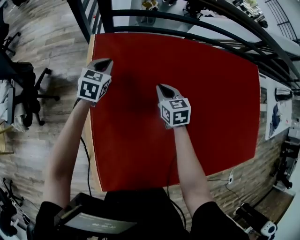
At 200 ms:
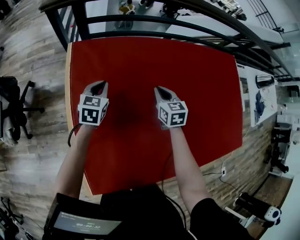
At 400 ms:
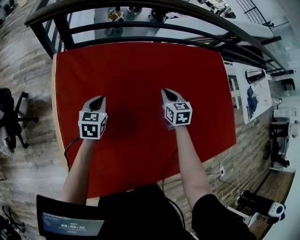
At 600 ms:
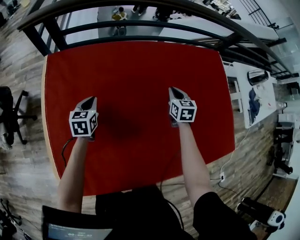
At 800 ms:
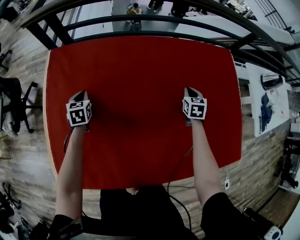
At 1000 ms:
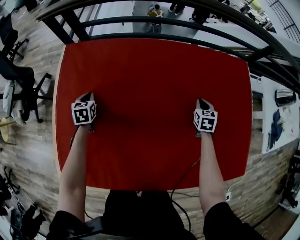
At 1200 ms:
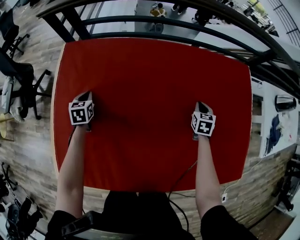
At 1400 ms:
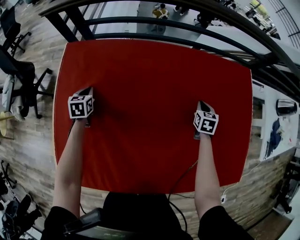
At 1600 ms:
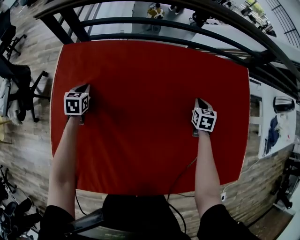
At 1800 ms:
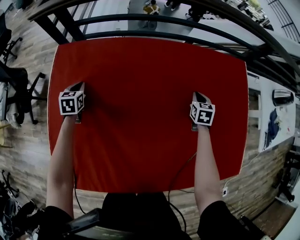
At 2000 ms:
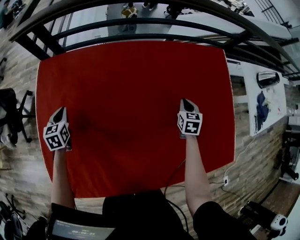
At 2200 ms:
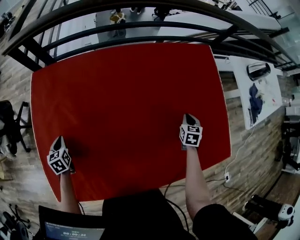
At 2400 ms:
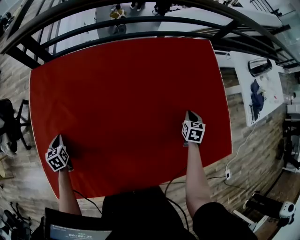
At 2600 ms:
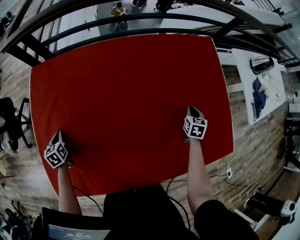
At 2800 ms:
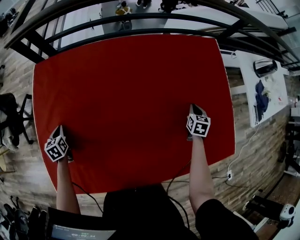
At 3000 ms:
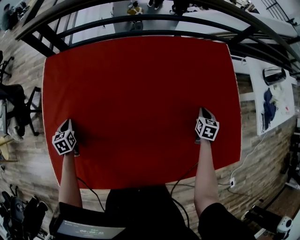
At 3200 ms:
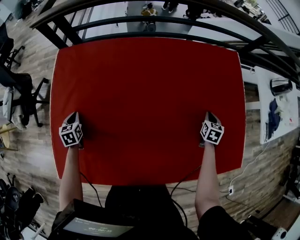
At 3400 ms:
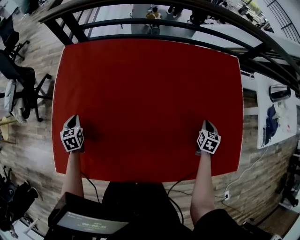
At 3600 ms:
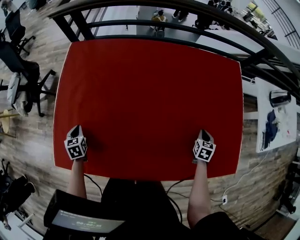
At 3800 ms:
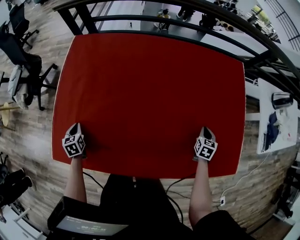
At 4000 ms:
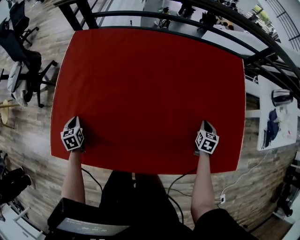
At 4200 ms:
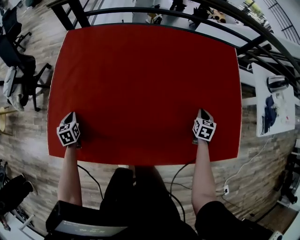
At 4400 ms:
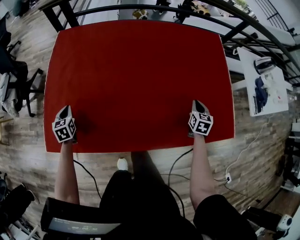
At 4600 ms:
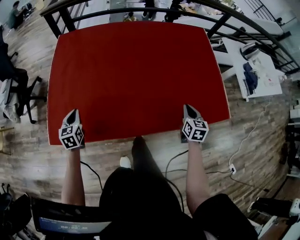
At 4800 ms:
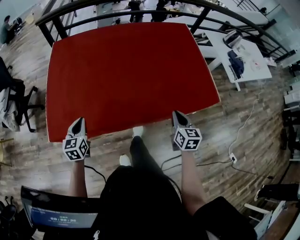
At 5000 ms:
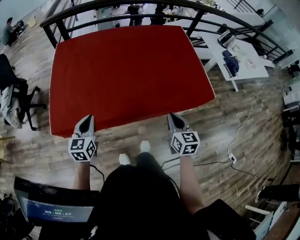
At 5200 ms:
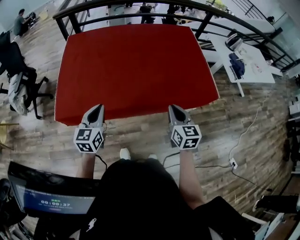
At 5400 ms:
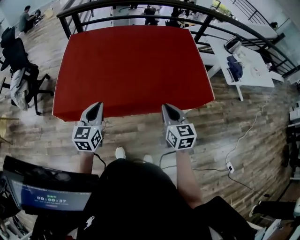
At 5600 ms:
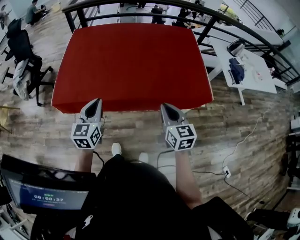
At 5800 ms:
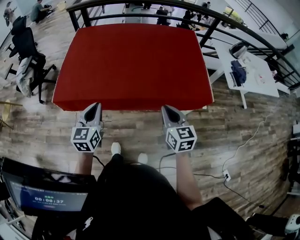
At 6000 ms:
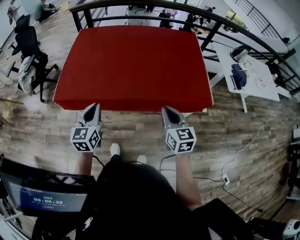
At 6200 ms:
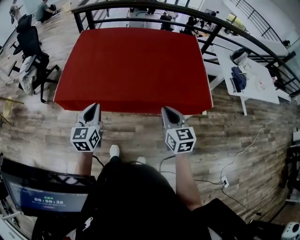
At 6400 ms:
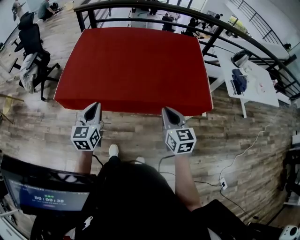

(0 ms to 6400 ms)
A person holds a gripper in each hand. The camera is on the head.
0 ms - 1600 ms: The right gripper shifts roughly 50 cm to the right, and changes its angle by some 20 degrees, while the left gripper moves to the right and downward, about 15 cm, and rotates approximately 20 degrees.
1600 ms - 3200 ms: The right gripper is displaced to the right and backward by roughly 20 cm. The left gripper shifts roughly 15 cm backward.
3200 ms - 4800 ms: The grippers both shift backward by about 40 cm. The left gripper turns by some 30 degrees, while the right gripper rotates about 20 degrees.
4800 ms - 6400 ms: The right gripper moves upward and backward, approximately 15 cm, and turns by about 30 degrees. The left gripper is displaced to the right, backward and upward by roughly 30 cm.

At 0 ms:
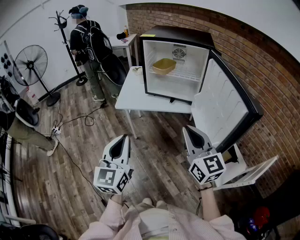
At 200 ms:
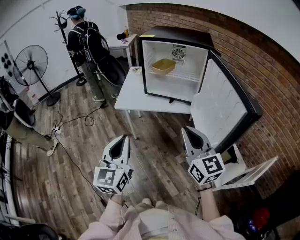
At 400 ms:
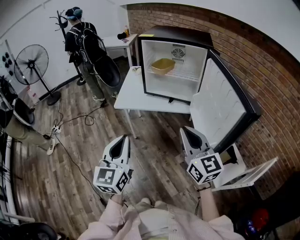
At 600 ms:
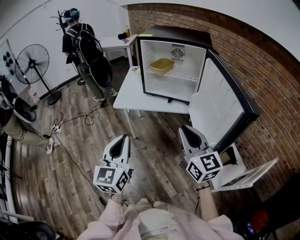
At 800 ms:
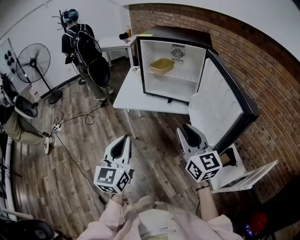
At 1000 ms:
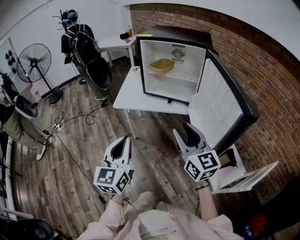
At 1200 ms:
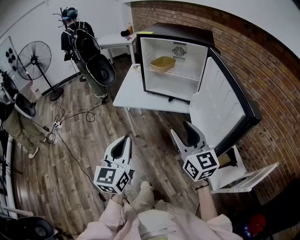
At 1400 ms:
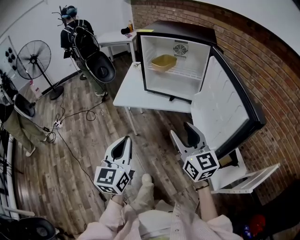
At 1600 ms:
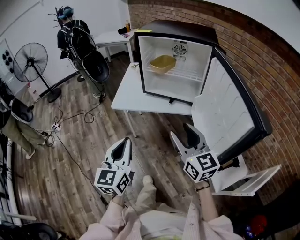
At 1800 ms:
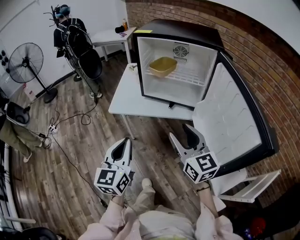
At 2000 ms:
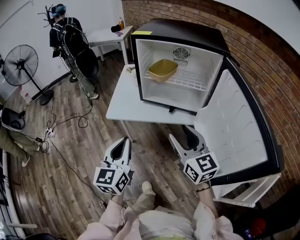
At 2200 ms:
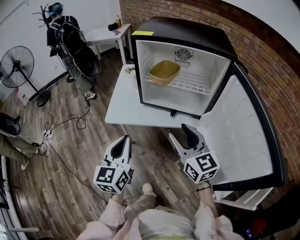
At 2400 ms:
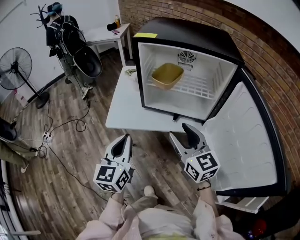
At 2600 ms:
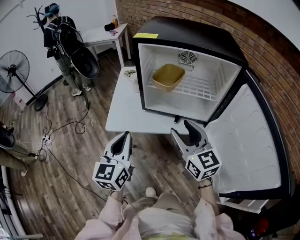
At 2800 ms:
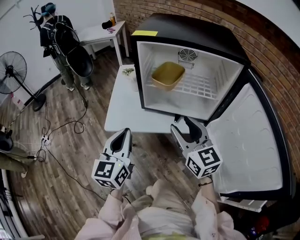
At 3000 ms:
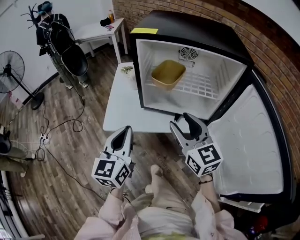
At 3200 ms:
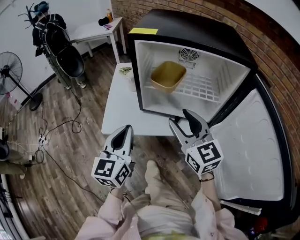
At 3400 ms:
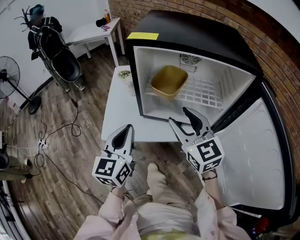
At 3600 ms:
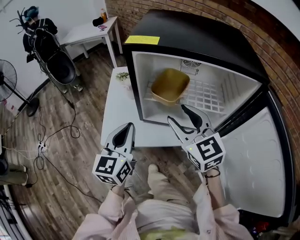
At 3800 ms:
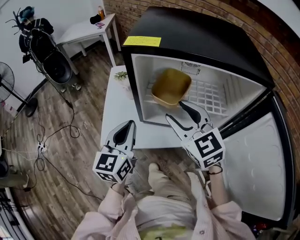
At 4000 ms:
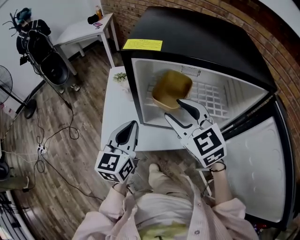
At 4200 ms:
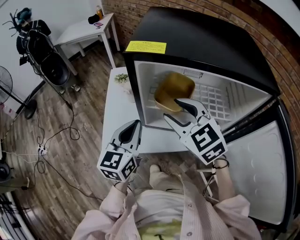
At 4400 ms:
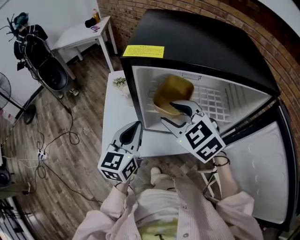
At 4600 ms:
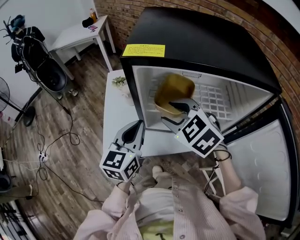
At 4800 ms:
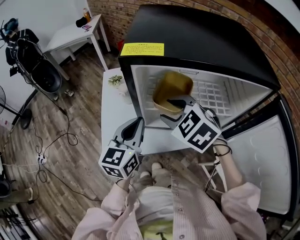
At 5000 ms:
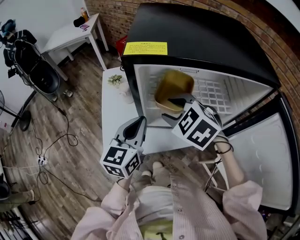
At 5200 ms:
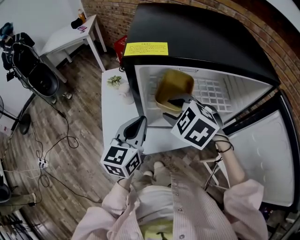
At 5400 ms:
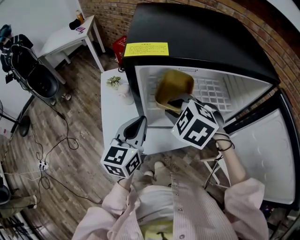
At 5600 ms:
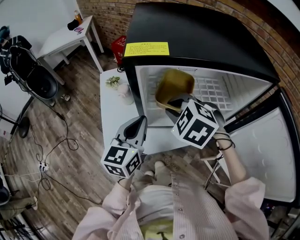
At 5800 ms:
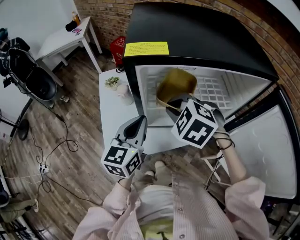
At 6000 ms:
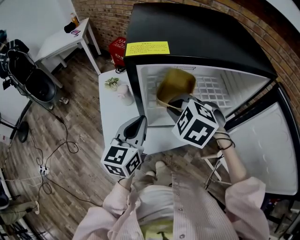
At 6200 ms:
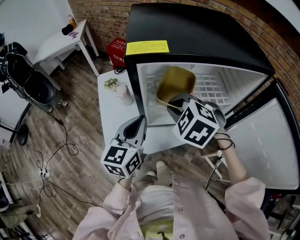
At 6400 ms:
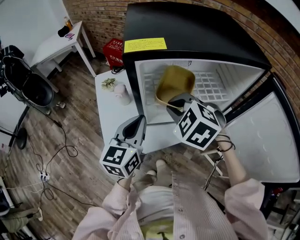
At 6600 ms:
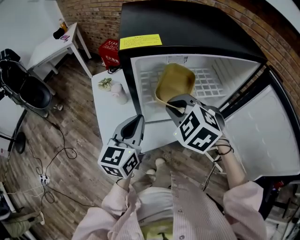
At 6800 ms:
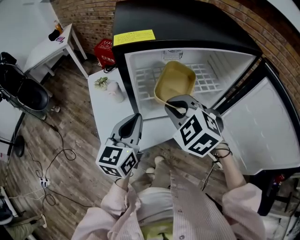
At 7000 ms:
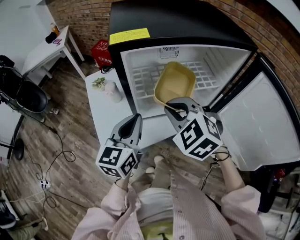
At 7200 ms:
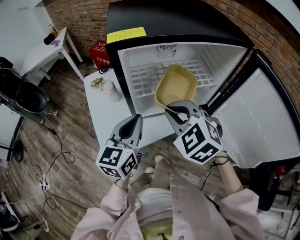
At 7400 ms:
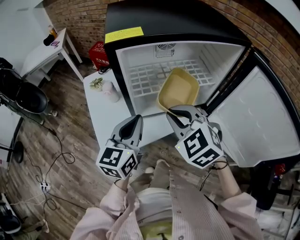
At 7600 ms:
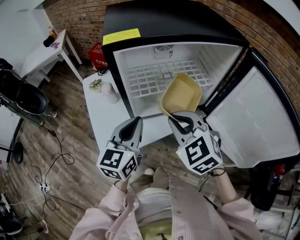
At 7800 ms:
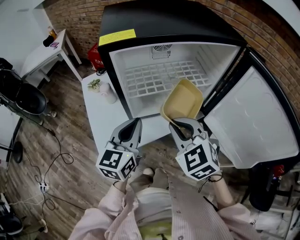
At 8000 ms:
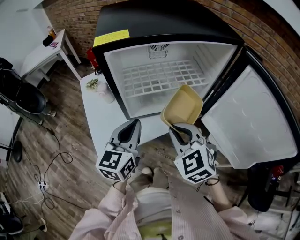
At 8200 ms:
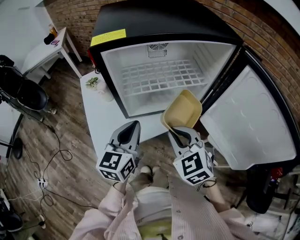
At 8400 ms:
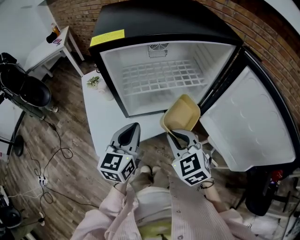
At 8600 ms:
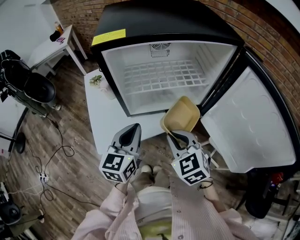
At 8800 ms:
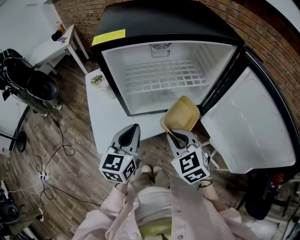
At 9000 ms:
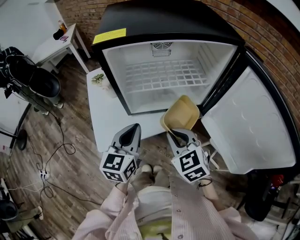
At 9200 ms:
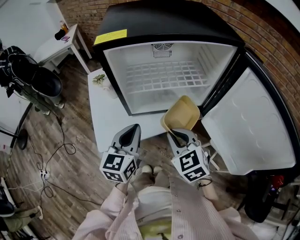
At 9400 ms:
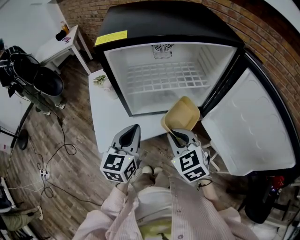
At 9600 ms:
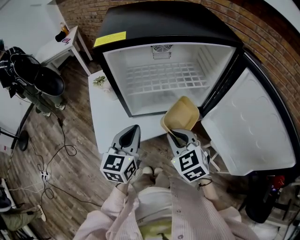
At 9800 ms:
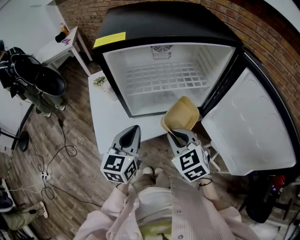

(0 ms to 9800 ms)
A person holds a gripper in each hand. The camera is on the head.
0 ms - 1400 ms: The right gripper shifts by roughly 5 cm, and opens up. The left gripper ends up roughly 5 cm from where it was.
1400 ms - 2800 ms: Both grippers travel together forward, about 25 cm.
2800 ms - 4200 ms: The two grippers go approximately 20 cm forward. The right gripper rotates roughly 30 degrees.
4200 ms - 5600 ms: The right gripper ends up approximately 5 cm from where it was, turns by some 30 degrees, and closes up.
5600 ms - 7000 ms: The right gripper is displaced backward by roughly 5 cm.
7000 ms - 8400 ms: The right gripper goes about 15 cm backward, to the right and downward, while the left gripper is displaced backward by about 5 cm.
8400 ms - 9800 ms: The grippers make only small movements.

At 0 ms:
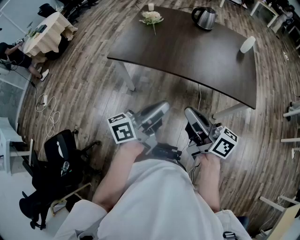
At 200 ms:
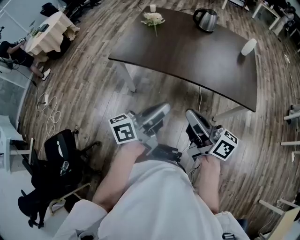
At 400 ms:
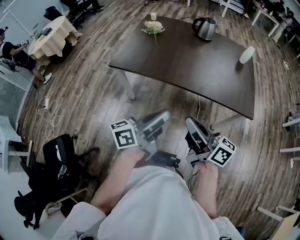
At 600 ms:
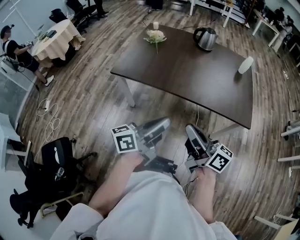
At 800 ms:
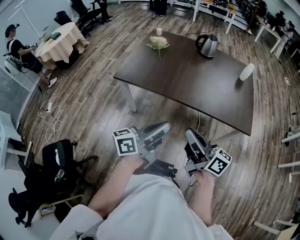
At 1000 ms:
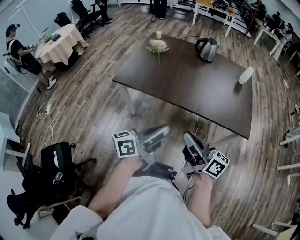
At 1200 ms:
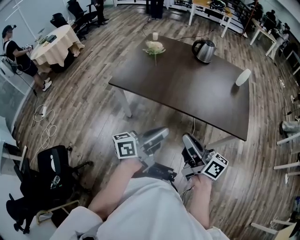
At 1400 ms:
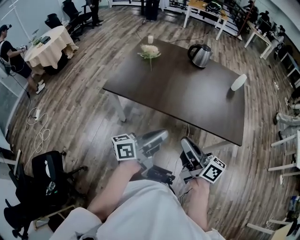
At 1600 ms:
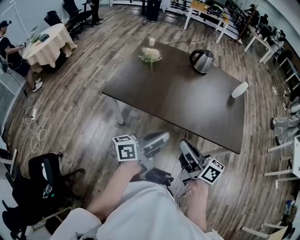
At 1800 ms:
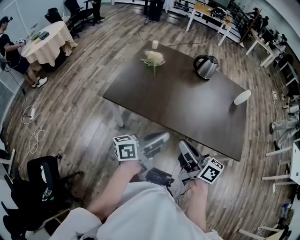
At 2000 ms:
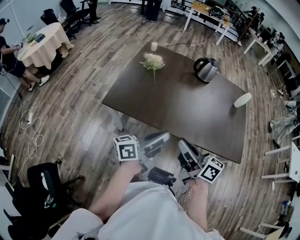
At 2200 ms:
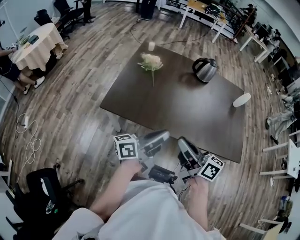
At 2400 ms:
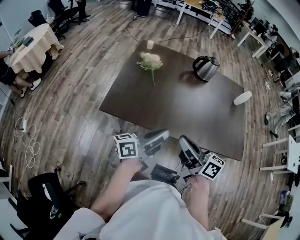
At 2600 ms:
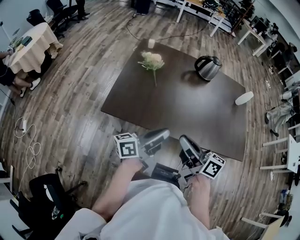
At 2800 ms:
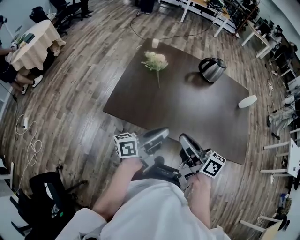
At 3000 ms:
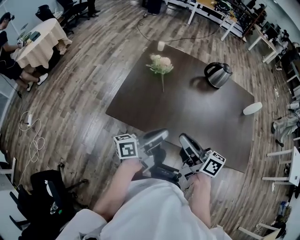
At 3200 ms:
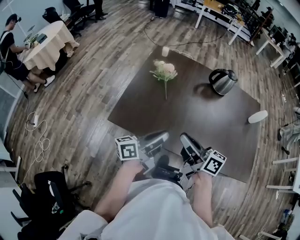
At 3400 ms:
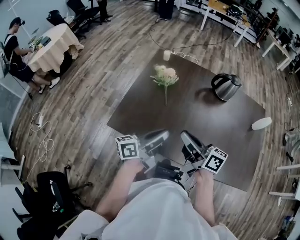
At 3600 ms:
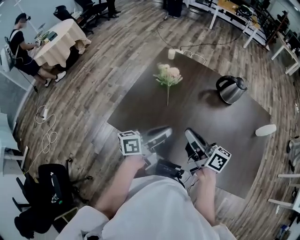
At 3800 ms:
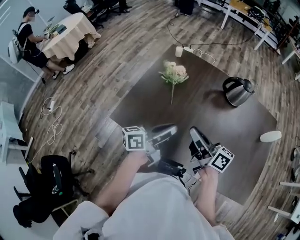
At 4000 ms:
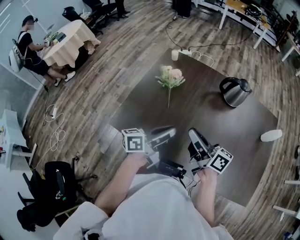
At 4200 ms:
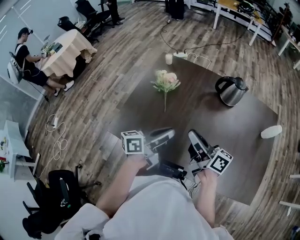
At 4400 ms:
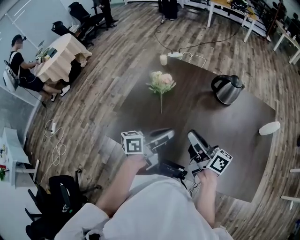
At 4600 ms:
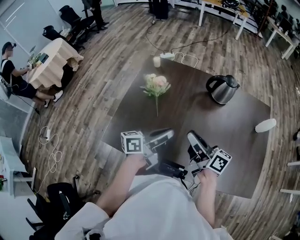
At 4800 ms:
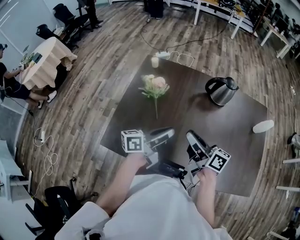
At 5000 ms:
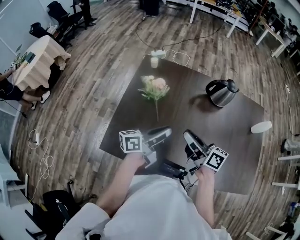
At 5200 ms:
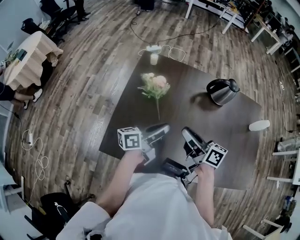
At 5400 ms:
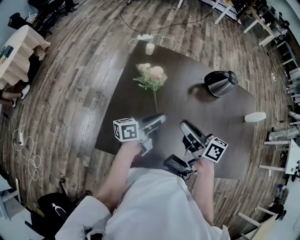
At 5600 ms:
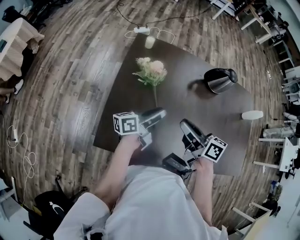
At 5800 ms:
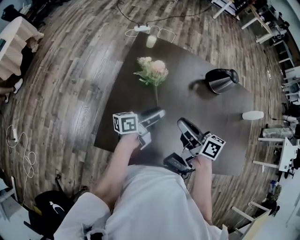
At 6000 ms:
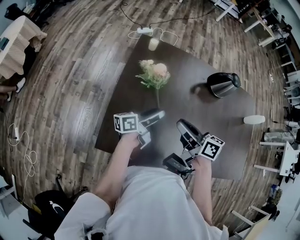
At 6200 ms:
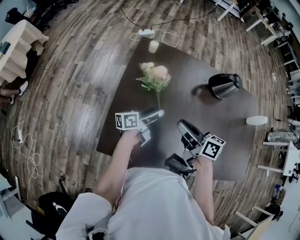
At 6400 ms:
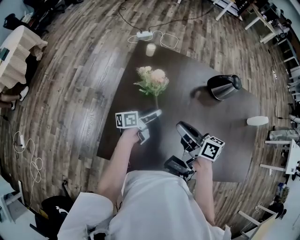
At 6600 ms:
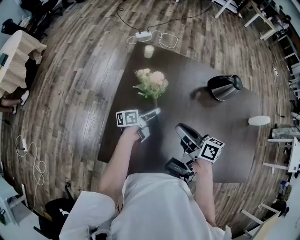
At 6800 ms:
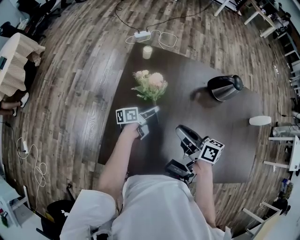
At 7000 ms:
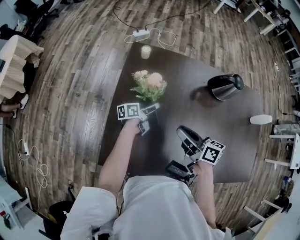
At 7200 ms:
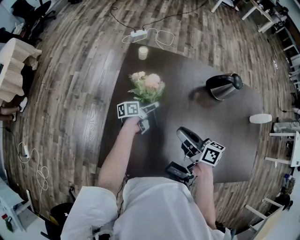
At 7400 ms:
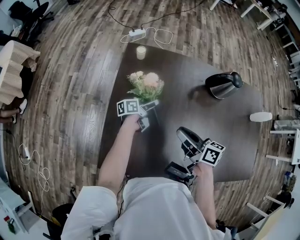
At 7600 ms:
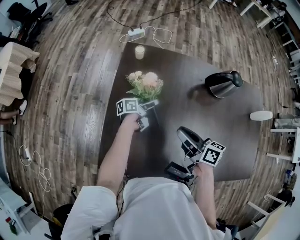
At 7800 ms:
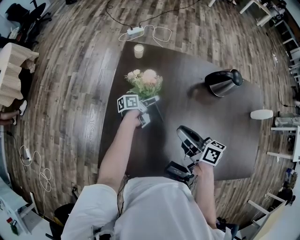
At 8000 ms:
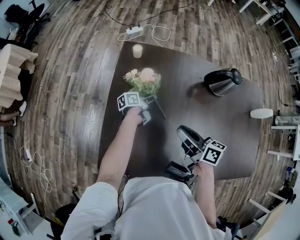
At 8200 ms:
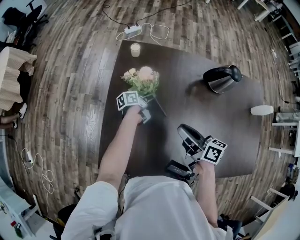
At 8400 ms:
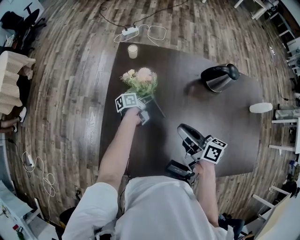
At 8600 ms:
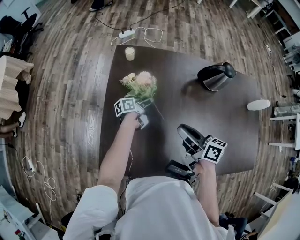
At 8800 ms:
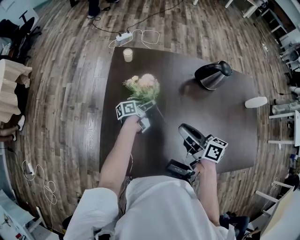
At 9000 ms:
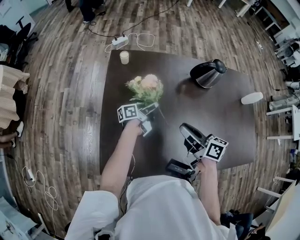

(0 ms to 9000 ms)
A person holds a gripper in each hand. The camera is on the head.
0 ms - 1600 ms: Both grippers travel together forward, some 10 cm.
1600 ms - 3000 ms: Both grippers move forward and to the left, some 25 cm.
3000 ms - 4400 ms: Both grippers travel together forward and to the right, about 20 cm.
4400 ms - 6000 ms: Both grippers move to the left, forward and downward, approximately 20 cm. The right gripper swivels some 20 degrees; the left gripper opens its fingers.
6000 ms - 7600 ms: The left gripper heads forward and downward, covering approximately 20 cm, and turns by roughly 20 degrees. The right gripper ends up about 5 cm from where it was.
7600 ms - 9000 ms: The left gripper moves upward and to the right, approximately 5 cm, and closes up.
